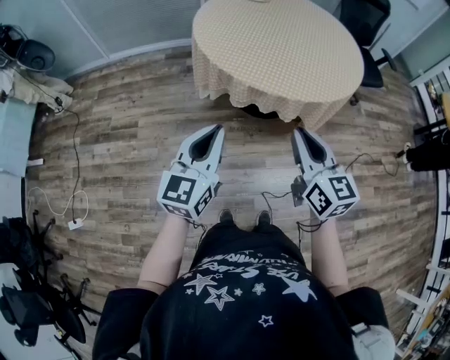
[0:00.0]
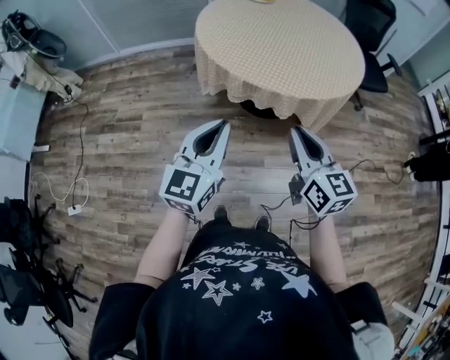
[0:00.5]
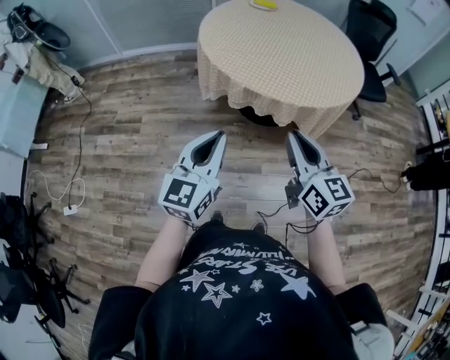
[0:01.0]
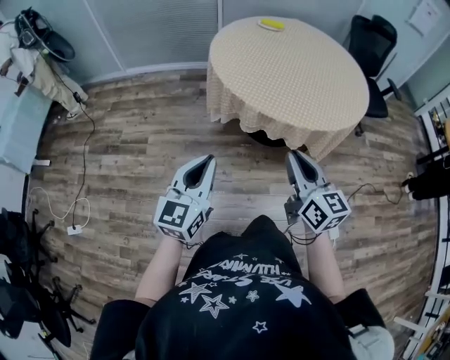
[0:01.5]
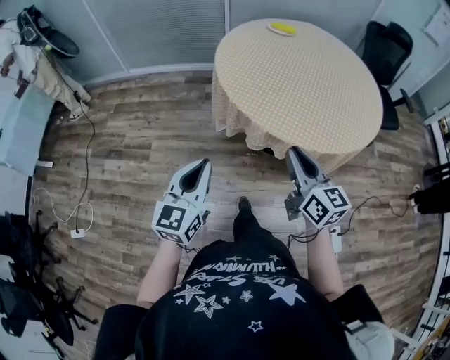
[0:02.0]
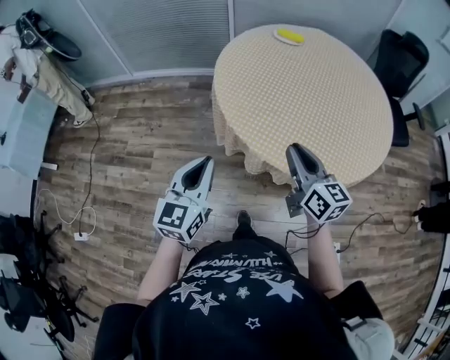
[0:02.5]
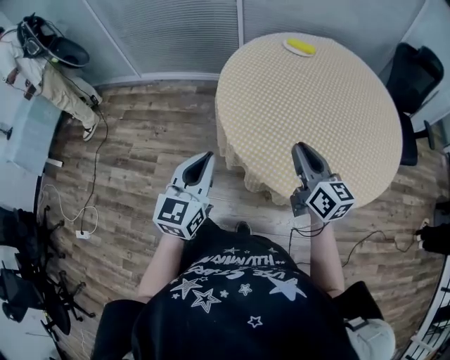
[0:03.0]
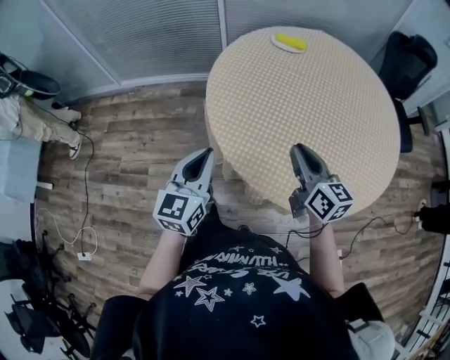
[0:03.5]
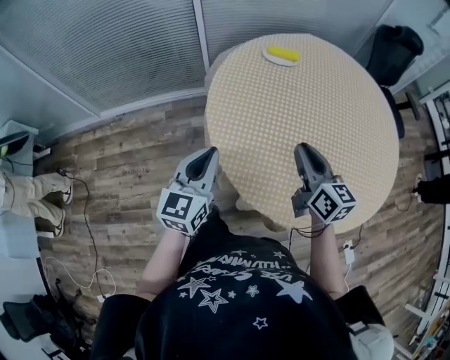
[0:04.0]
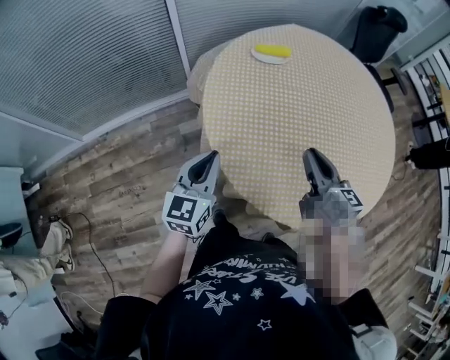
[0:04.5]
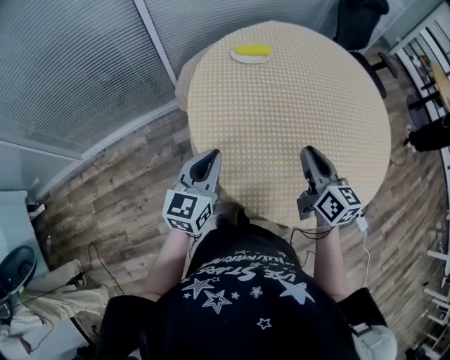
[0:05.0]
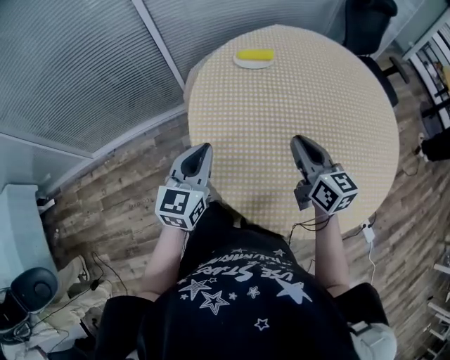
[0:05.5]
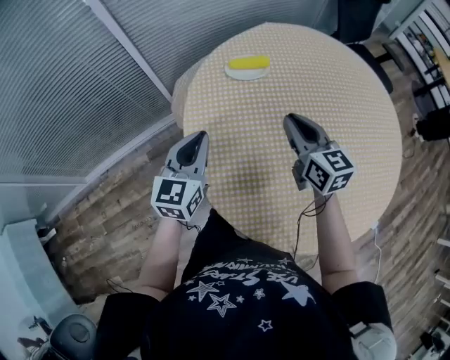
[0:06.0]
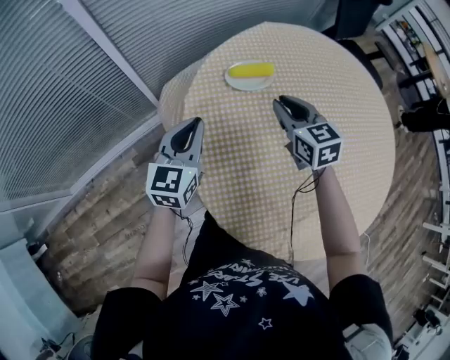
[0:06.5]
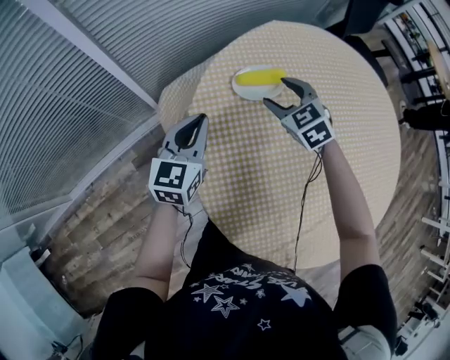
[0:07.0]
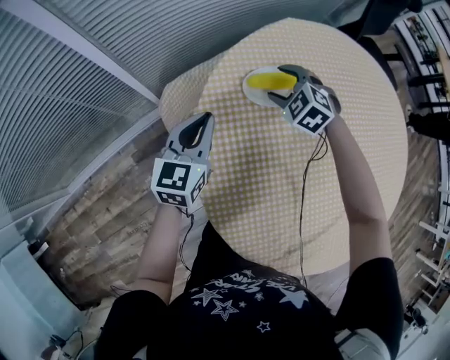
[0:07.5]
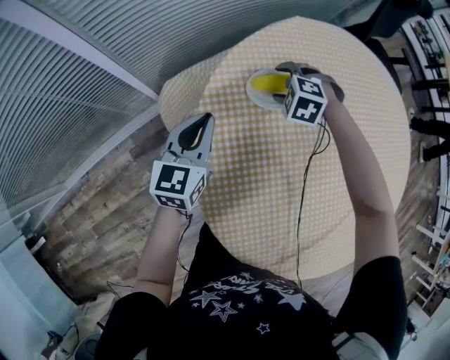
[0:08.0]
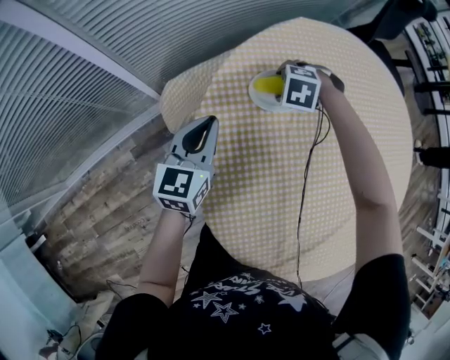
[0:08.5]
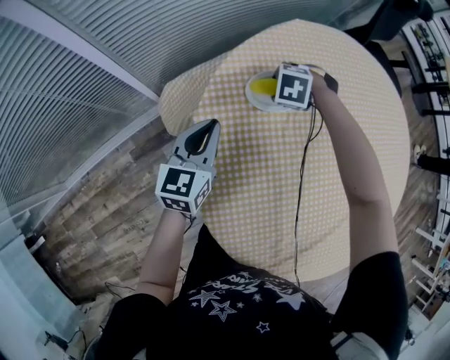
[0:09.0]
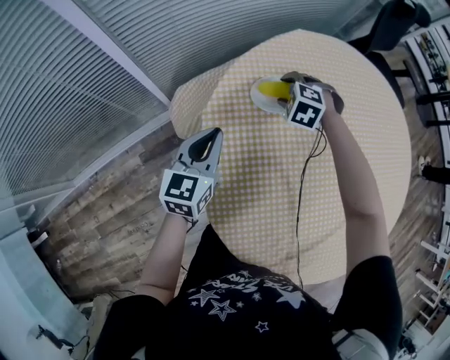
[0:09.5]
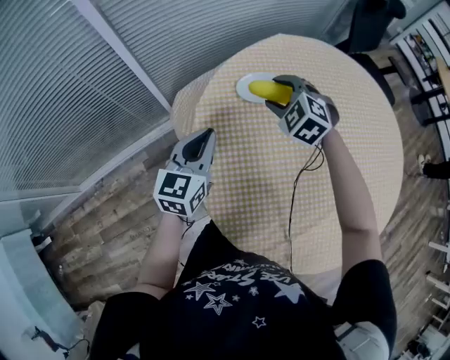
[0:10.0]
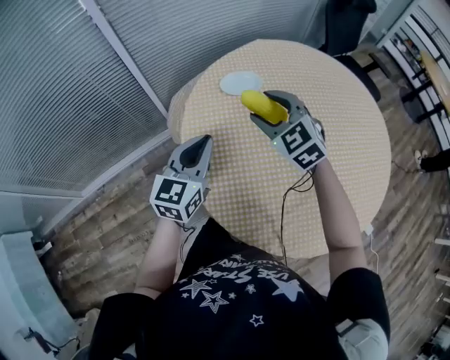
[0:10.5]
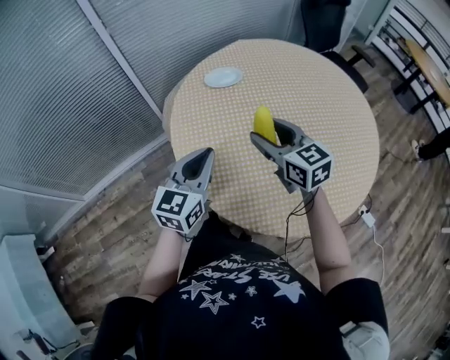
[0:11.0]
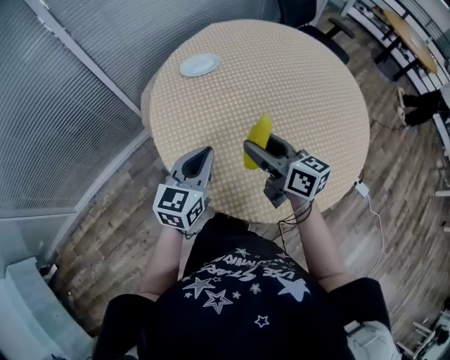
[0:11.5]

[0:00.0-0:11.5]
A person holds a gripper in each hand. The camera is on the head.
0:00.0 to 0:02.0: The right gripper heads forward, covering roughly 15 cm; the left gripper shifts approximately 10 cm forward and to the left.
0:02.0 to 0:04.0: The pair of grippers is taken forward, roughly 40 cm.
0:04.0 to 0:06.0: Both grippers travel together forward, some 25 cm.
0:06.0 to 0:07.5: The right gripper shifts some 30 cm forward and downward, tilts its fingers roughly 40 degrees downward, and opens up. The left gripper goes approximately 20 cm forward.
0:09.5 to 0:11.5: The left gripper travels backward and to the right by some 30 cm. The right gripper shifts about 50 cm backward and upward, and tilts its fingers about 60 degrees upward.

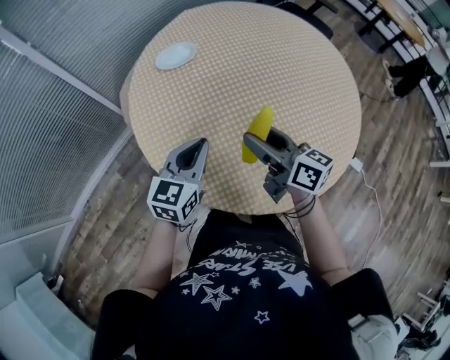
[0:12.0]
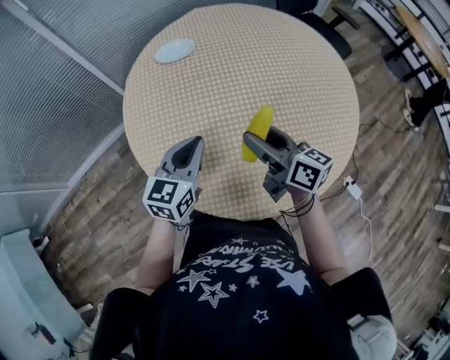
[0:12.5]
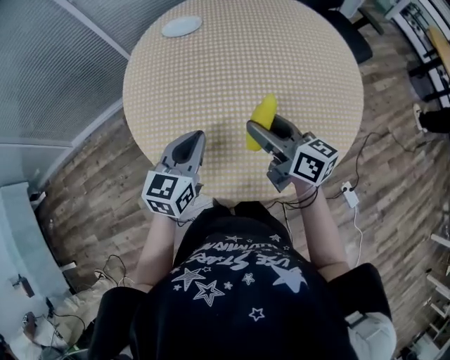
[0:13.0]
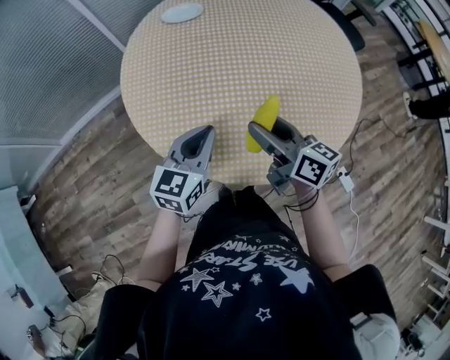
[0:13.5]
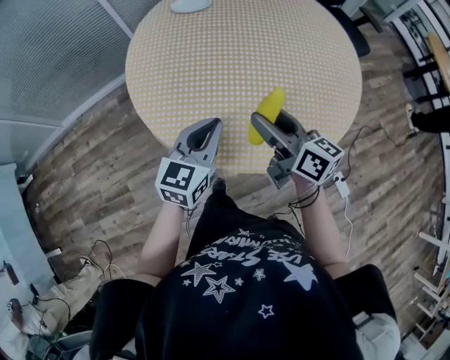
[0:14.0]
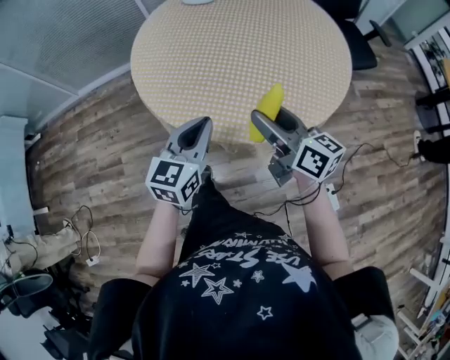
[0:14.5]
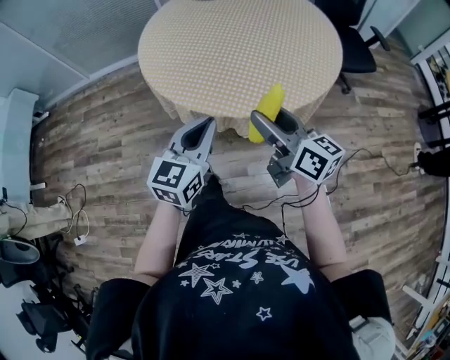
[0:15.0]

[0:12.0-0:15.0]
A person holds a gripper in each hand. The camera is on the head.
0:12.0 to 0:13.5: The right gripper heads to the right and backward, covering roughly 15 cm. The left gripper travels backward and to the right by roughly 20 cm.
0:13.5 to 0:15.0: Both grippers move backward and to the right, about 35 cm. The left gripper swivels approximately 20 degrees.

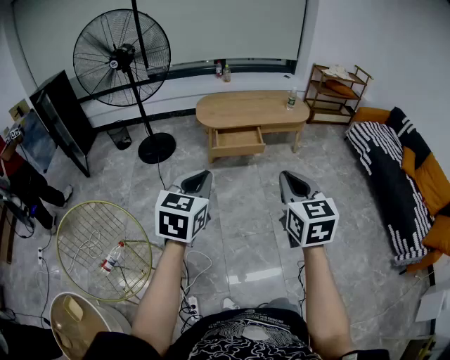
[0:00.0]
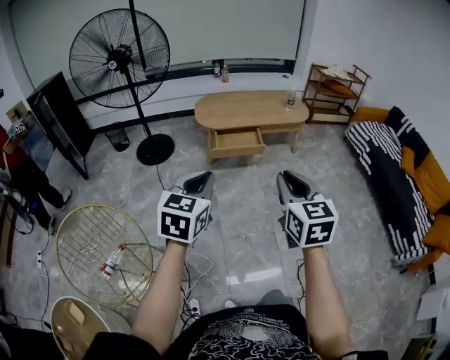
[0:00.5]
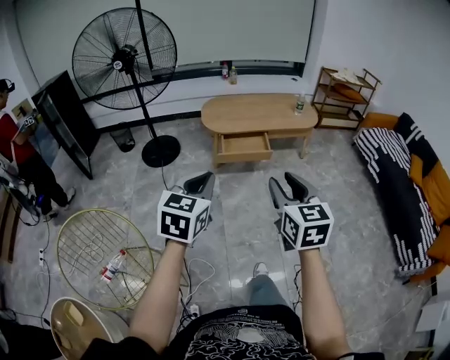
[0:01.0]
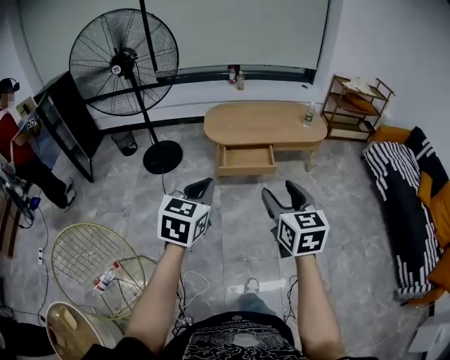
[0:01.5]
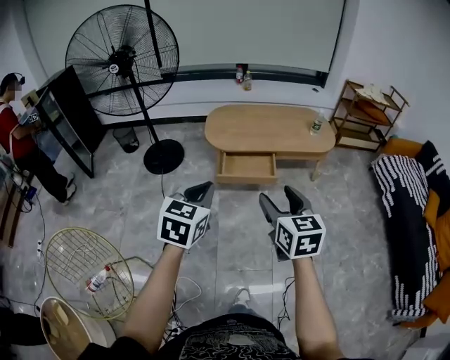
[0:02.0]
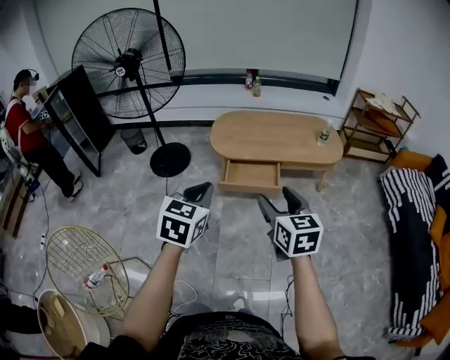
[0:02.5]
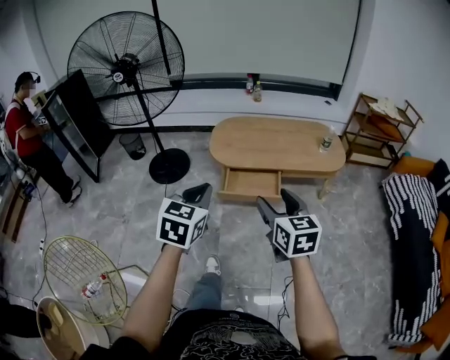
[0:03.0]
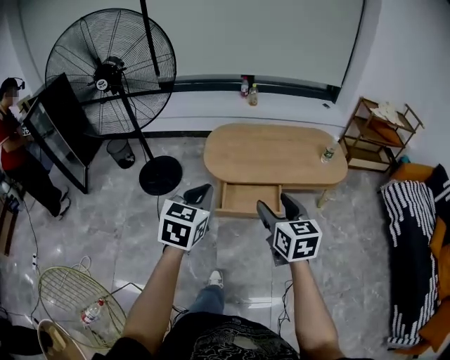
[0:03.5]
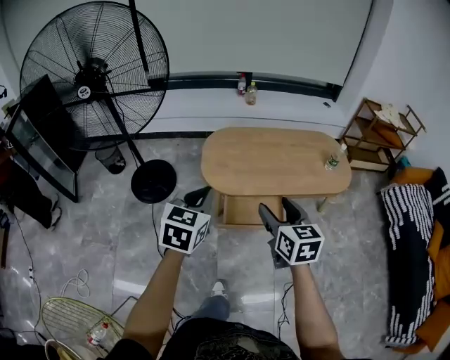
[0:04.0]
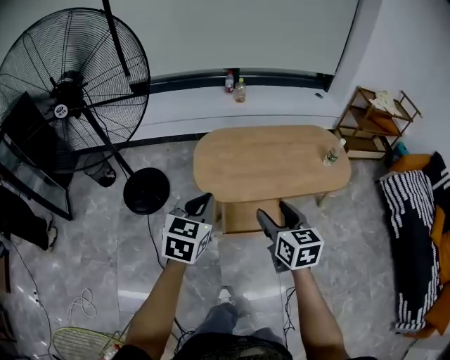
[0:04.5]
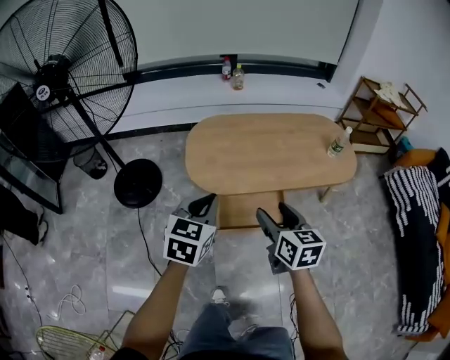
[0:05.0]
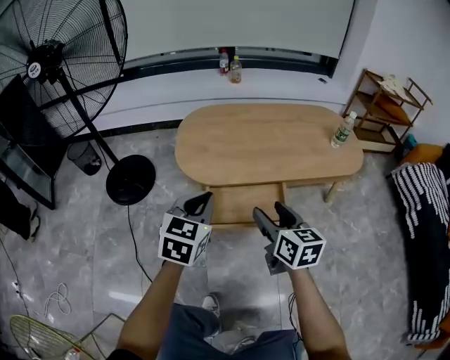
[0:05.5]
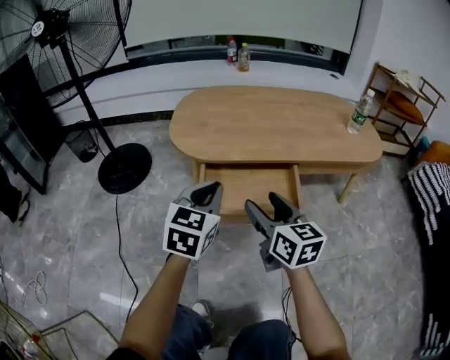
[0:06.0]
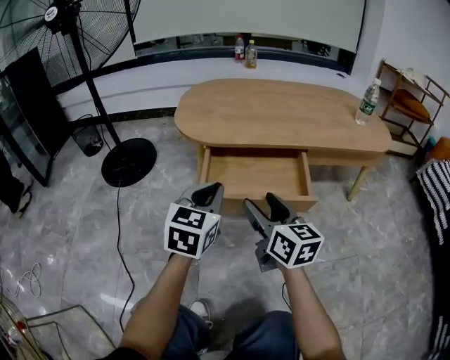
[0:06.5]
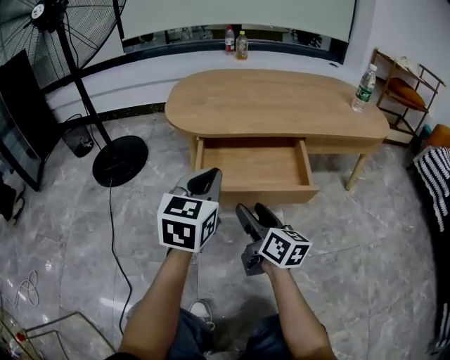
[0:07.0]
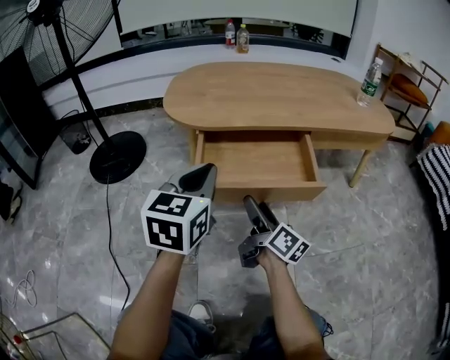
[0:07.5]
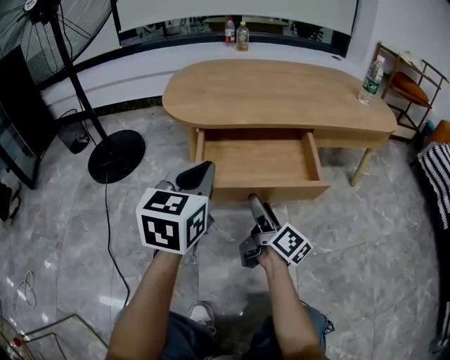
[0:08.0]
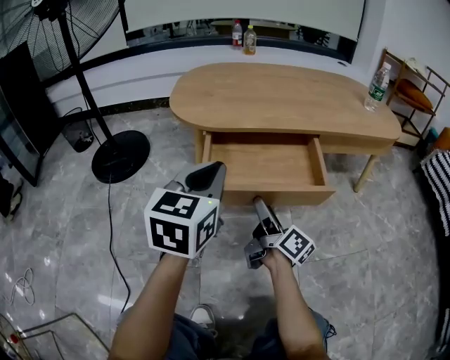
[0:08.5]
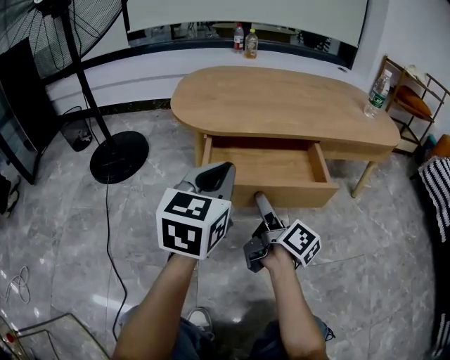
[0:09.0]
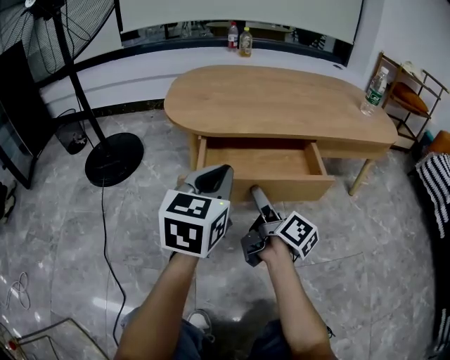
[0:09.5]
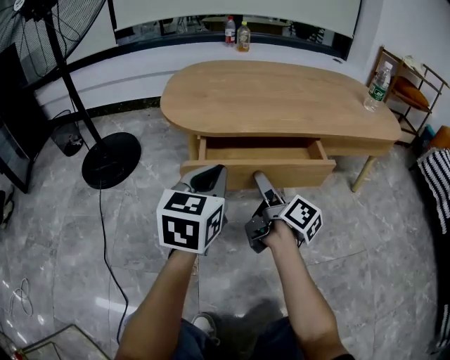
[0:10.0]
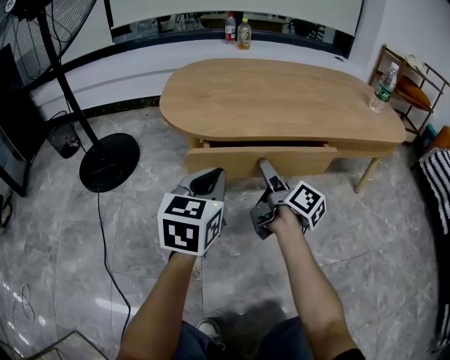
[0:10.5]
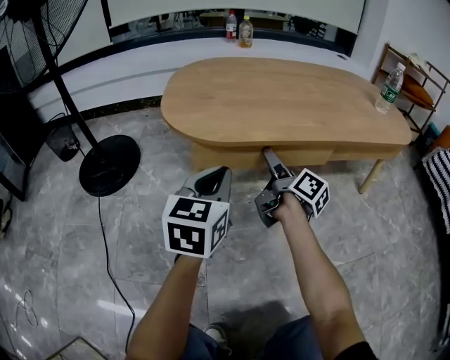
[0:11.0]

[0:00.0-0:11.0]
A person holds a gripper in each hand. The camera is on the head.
0:00.0 to 0:02.0: The grippers both shift forward by roughly 25 cm. The right gripper opens its fingers.
0:02.0 to 0:03.5: Both grippers move forward, approximately 20 cm.
0:03.5 to 0:05.5: The two grippers go about 30 cm downward and forward.
0:05.5 to 0:07.5: The left gripper goes roughly 20 cm downward, while the right gripper moves downward, roughly 30 cm, and swivels about 40 degrees.
0:07.5 to 0:09.0: The grippers move only a little.
0:09.0 to 0:11.0: The right gripper shifts approximately 20 cm forward; the left gripper travels forward and downward by some 10 cm.

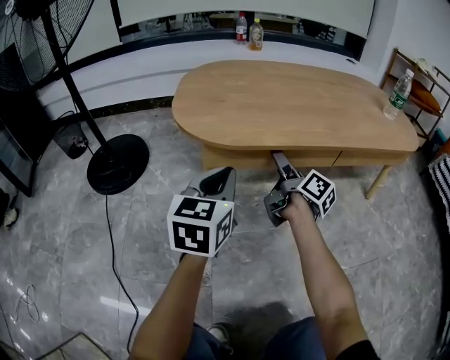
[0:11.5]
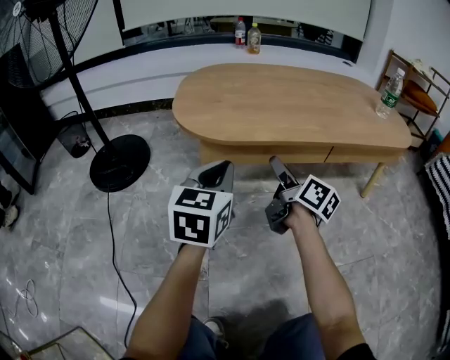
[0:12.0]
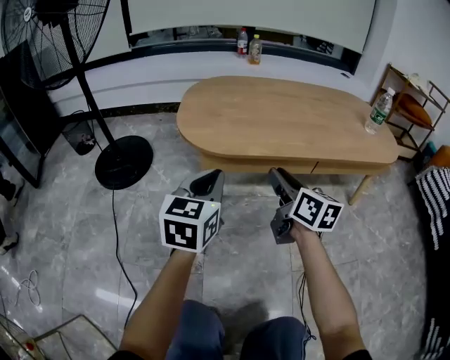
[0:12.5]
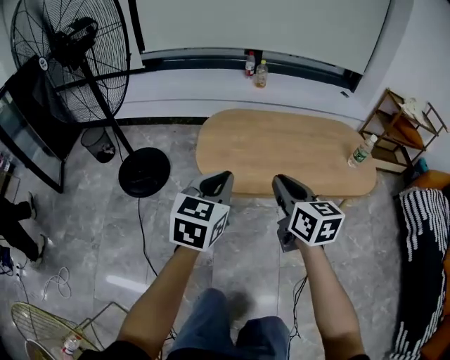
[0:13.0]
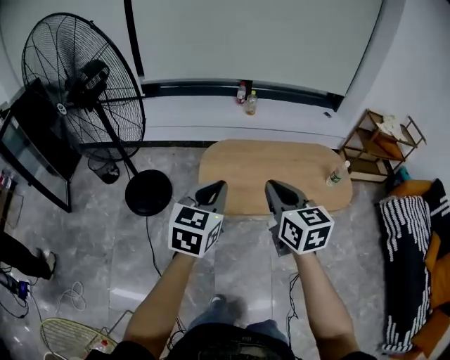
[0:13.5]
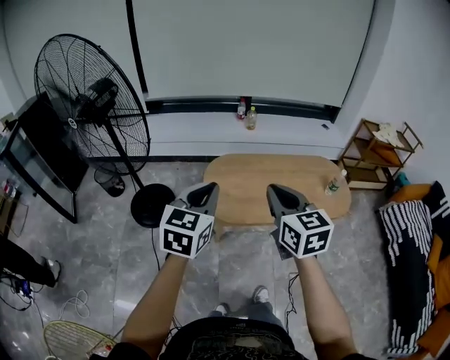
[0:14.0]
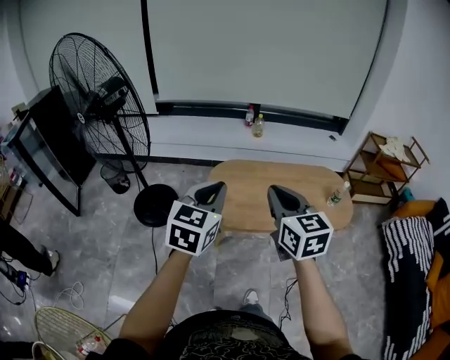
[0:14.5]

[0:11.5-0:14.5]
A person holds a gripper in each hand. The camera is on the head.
0:11.5 to 0:13.0: The two grippers go about 35 cm upward. The right gripper rotates around the line of its fingers by about 50 degrees, counterclockwise from behind, and closes up.
0:13.0 to 0:14.5: The grippers both shift upward by roughly 25 cm.
